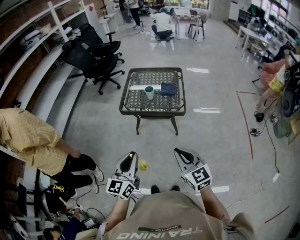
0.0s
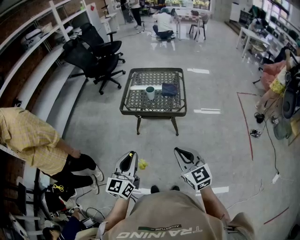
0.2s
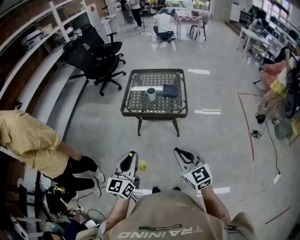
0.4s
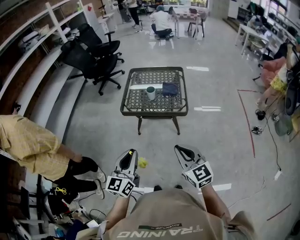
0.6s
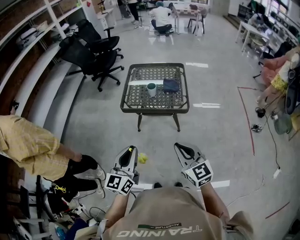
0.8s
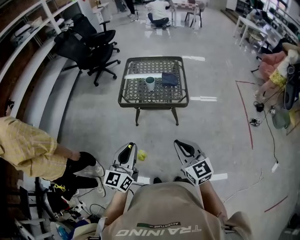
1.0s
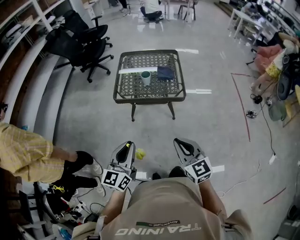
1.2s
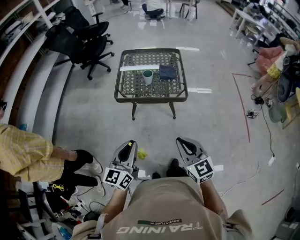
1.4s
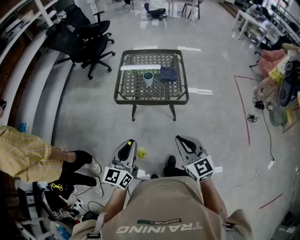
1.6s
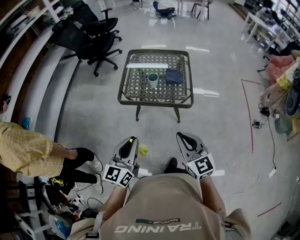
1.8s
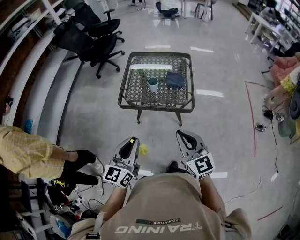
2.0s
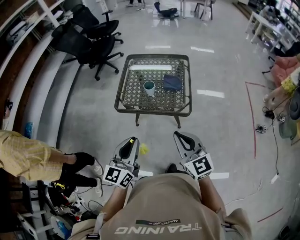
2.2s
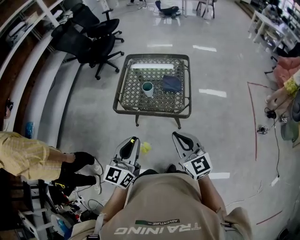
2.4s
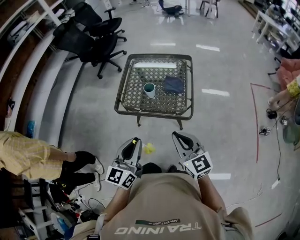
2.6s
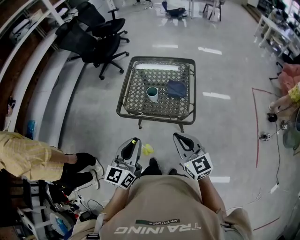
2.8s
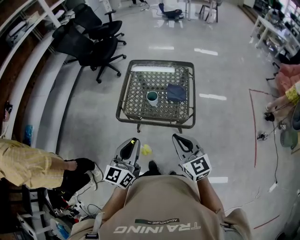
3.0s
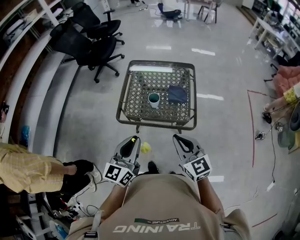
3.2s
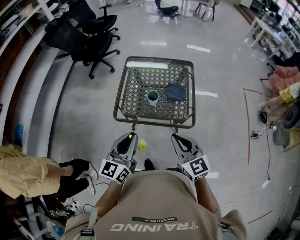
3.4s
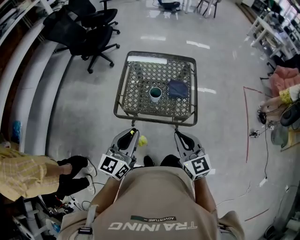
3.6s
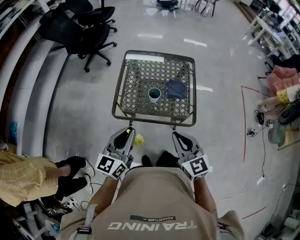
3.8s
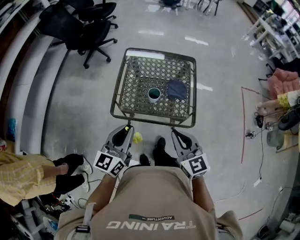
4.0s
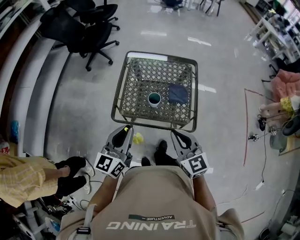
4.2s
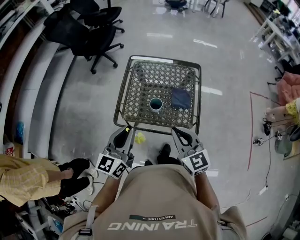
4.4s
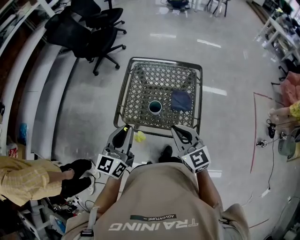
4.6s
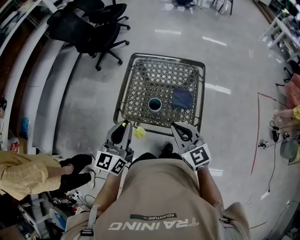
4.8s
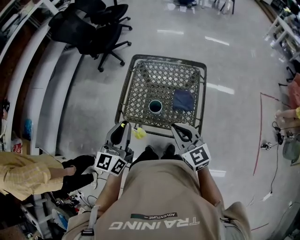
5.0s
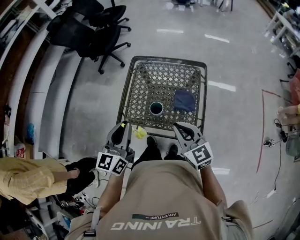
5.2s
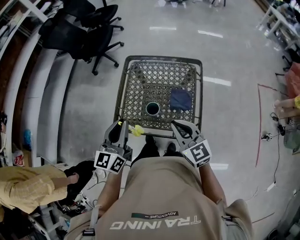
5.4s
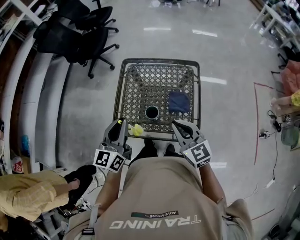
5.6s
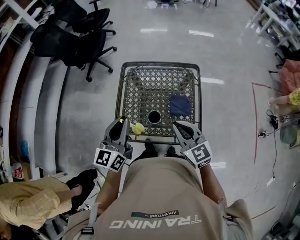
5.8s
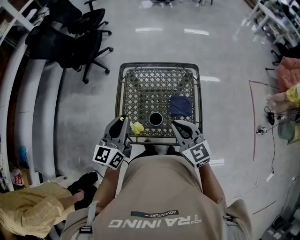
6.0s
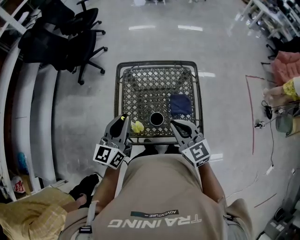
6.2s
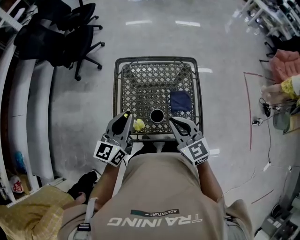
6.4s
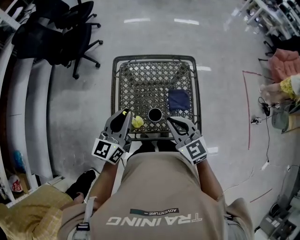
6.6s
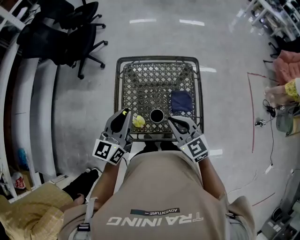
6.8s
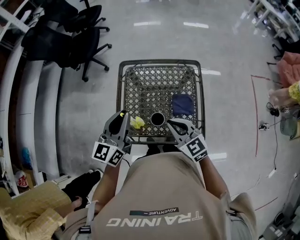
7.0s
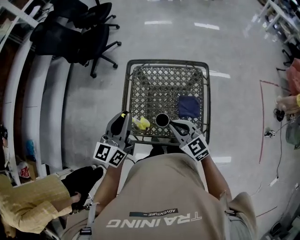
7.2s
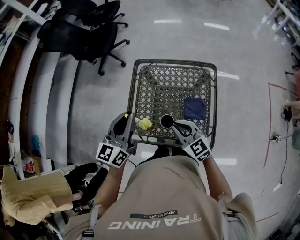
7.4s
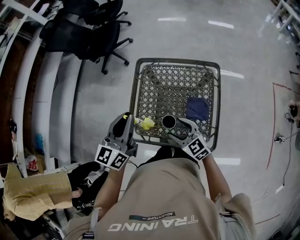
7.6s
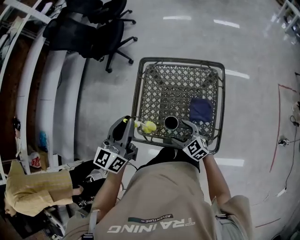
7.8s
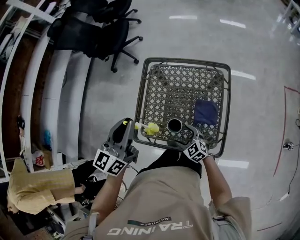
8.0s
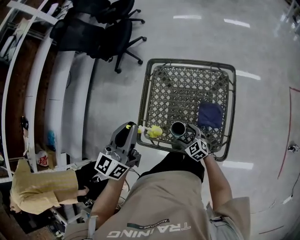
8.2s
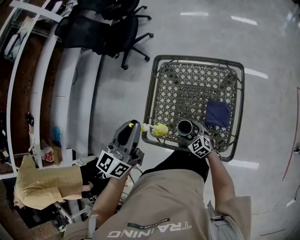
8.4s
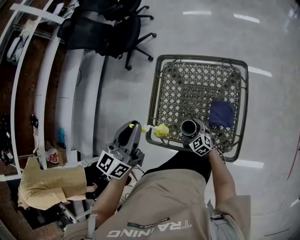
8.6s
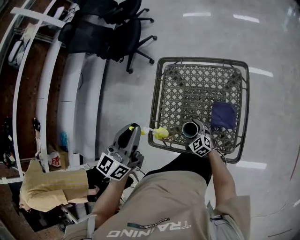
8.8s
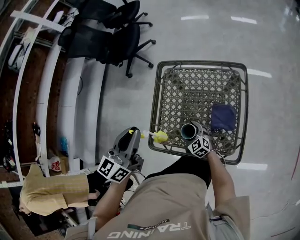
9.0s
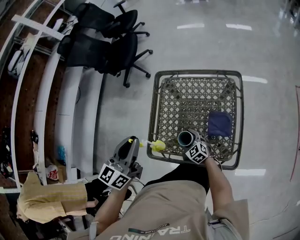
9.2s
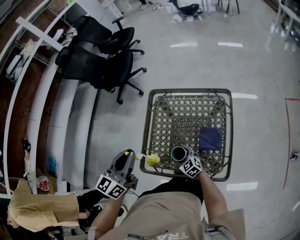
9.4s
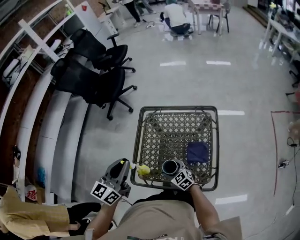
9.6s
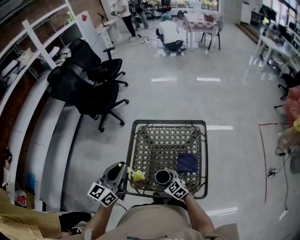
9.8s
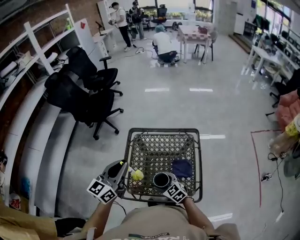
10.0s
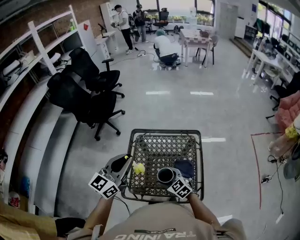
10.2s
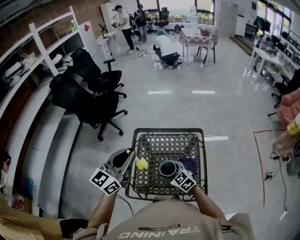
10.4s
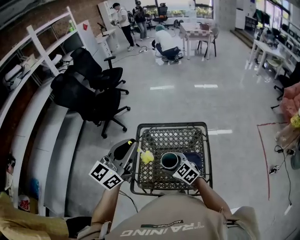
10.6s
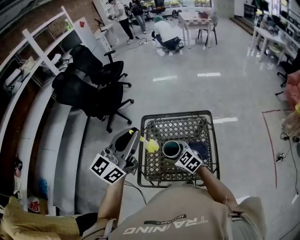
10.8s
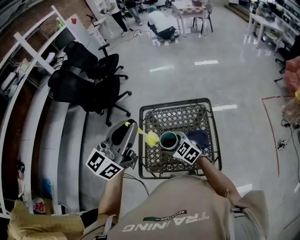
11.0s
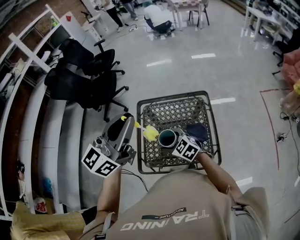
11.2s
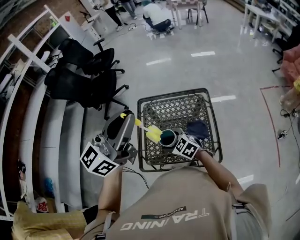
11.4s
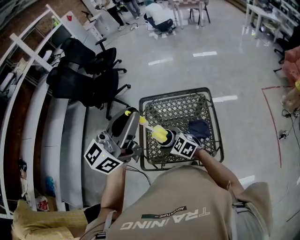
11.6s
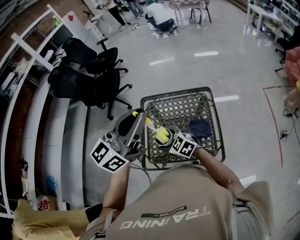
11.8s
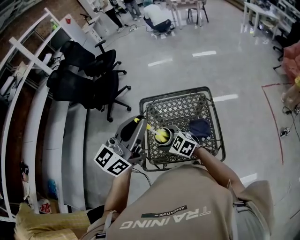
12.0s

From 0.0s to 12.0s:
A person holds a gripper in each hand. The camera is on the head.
From 0.0s to 1.6s: Both grippers move forward, about 10 cm.
From 1.6s to 3.0s: The right gripper moves forward, approximately 20 cm. The left gripper moves forward and to the right, some 20 cm.
From 3.0s to 4.4s: Both grippers travel together forward, some 15 cm.
From 4.4s to 6.0s: Both grippers move forward, roughly 15 cm.
From 6.0s to 7.6s: The right gripper shifts roughly 15 cm downward, turns by some 20 degrees, and opens its fingers.
From 7.6s to 9.0s: The right gripper goes some 20 cm downward.
From 9.0s to 10.4s: The right gripper heads upward, covering about 25 cm, while the left gripper goes about 15 cm upward, and changes its angle by some 20 degrees.
From 10.4s to 12.0s: The right gripper goes about 5 cm to the left; the left gripper is displaced upward by some 5 cm.

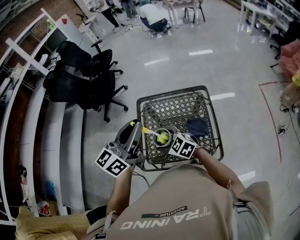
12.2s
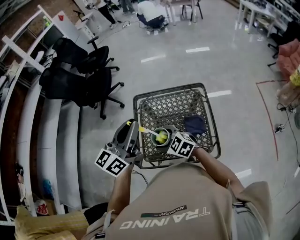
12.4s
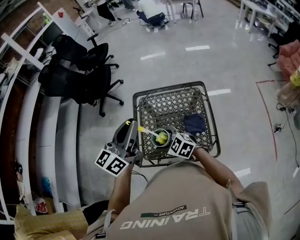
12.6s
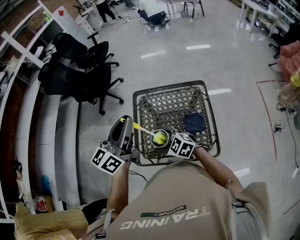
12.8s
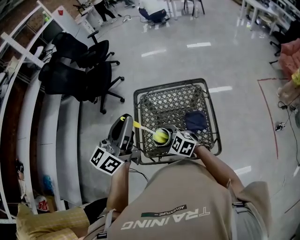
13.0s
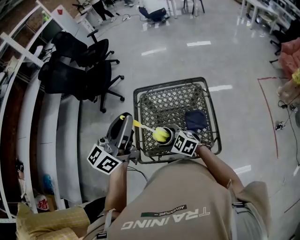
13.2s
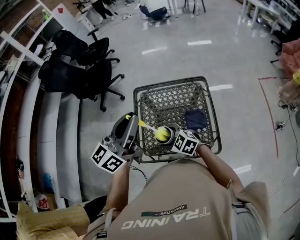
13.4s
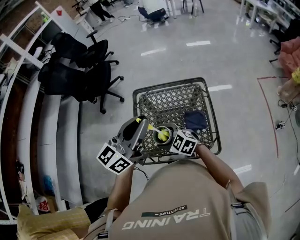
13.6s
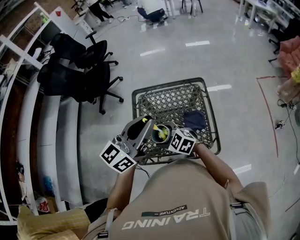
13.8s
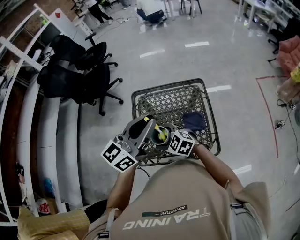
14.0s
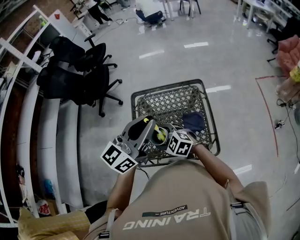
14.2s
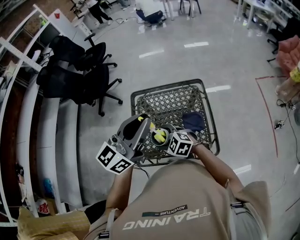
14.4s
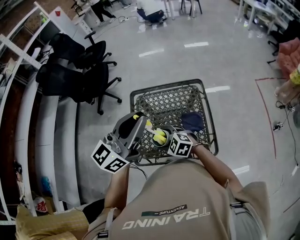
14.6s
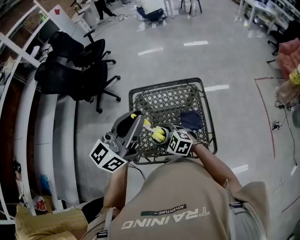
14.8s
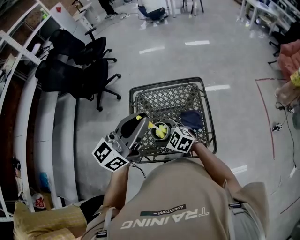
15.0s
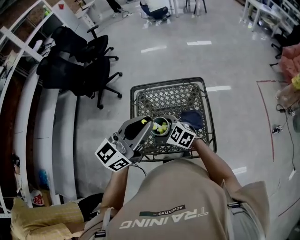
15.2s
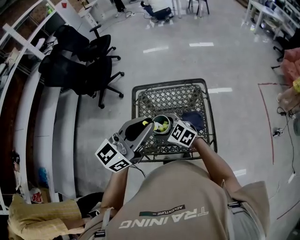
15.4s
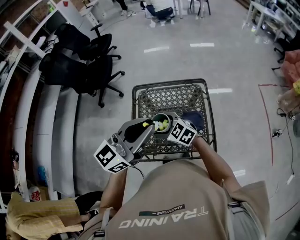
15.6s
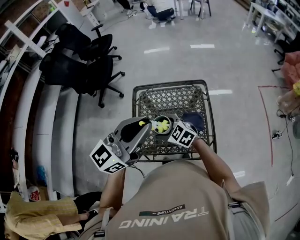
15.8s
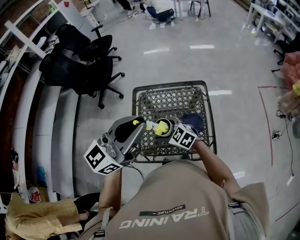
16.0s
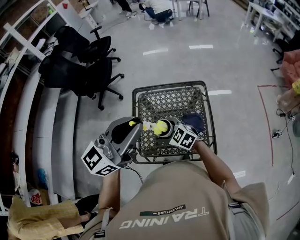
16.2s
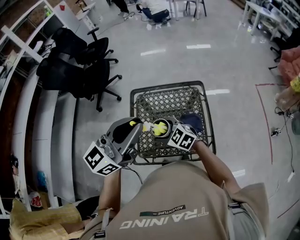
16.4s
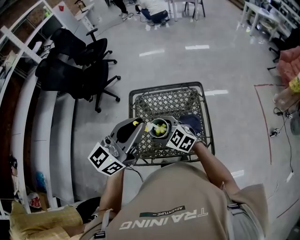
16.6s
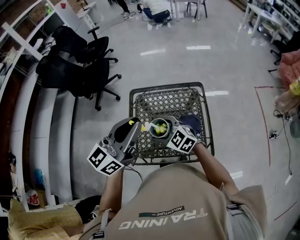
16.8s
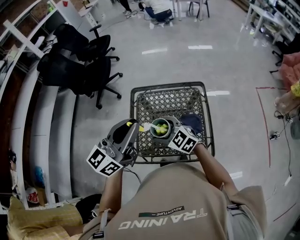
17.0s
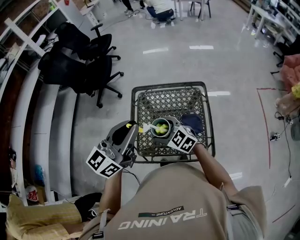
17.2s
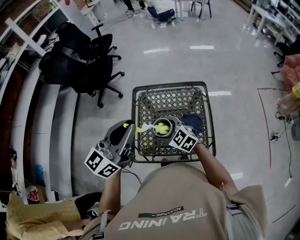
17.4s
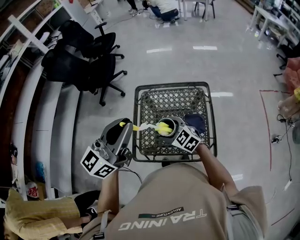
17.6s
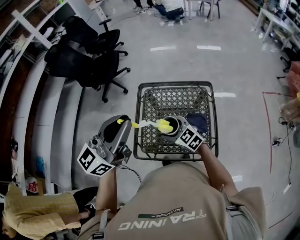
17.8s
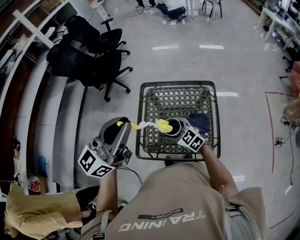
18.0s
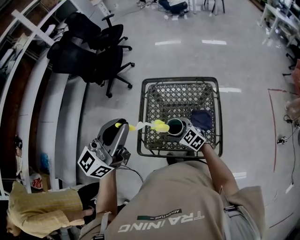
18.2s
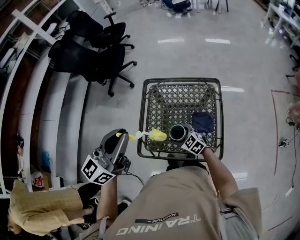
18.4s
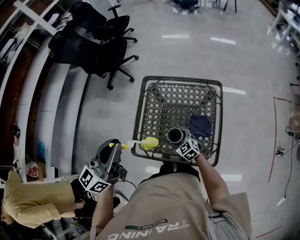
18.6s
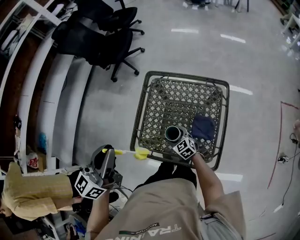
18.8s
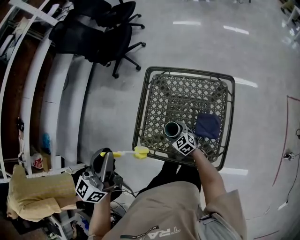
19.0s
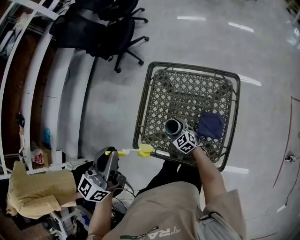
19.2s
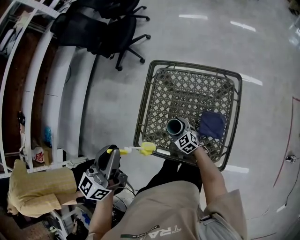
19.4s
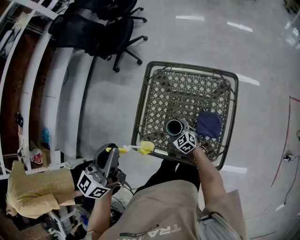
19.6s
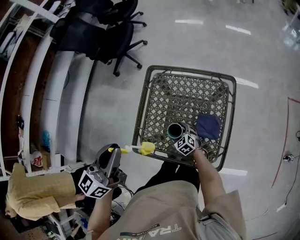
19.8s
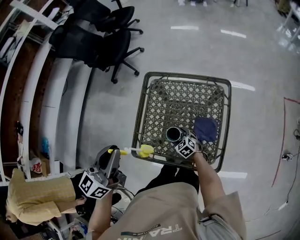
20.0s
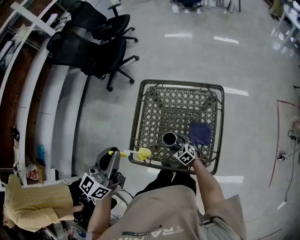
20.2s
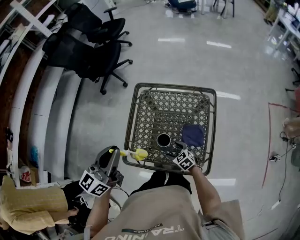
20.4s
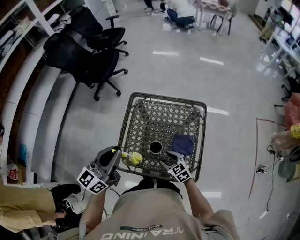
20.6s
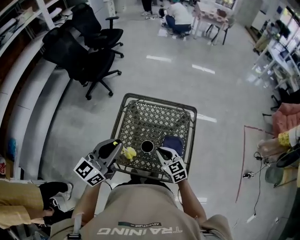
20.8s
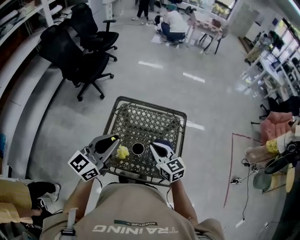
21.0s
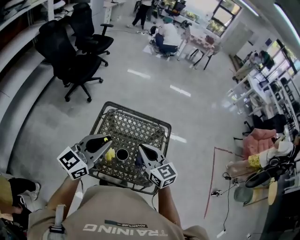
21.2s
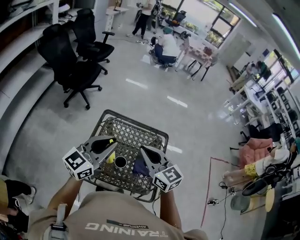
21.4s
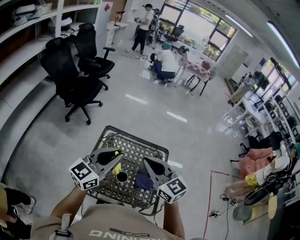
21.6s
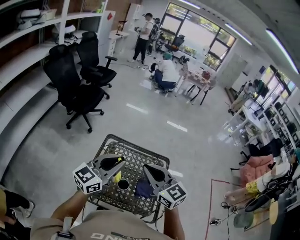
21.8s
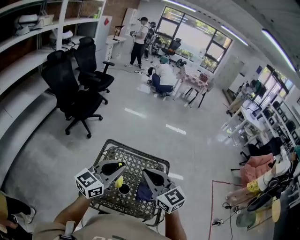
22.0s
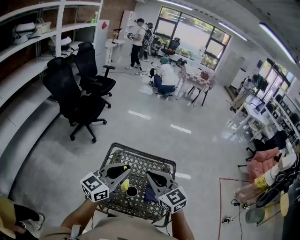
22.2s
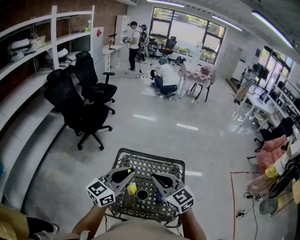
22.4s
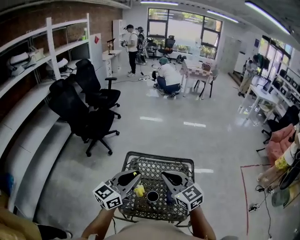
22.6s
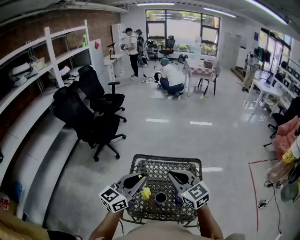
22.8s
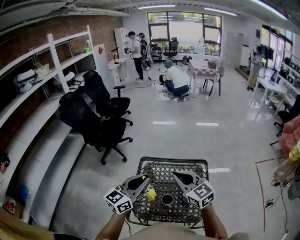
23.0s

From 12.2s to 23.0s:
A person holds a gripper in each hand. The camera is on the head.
From 12.2s to 13.8s: The left gripper is displaced to the right by approximately 5 cm.
From 13.8s to 15.2s: The grippers stay close to where they were, moving slightly.
From 16.8s to 18.4s: The left gripper travels to the left by approximately 10 cm; the right gripper is displaced downward by some 15 cm.
From 18.4s to 20.0s: The right gripper travels downward by some 15 cm. Meanwhile the left gripper shifts roughly 10 cm downward.
From 20.0s to 21.4s: The right gripper shifts roughly 50 cm upward, tips its fingers upward by about 40 degrees, and closes. Meanwhile the left gripper is displaced to the right by approximately 10 cm, and changes its angle by approximately 20 degrees.
From 21.4s to 23.0s: The left gripper changes place by some 5 cm.

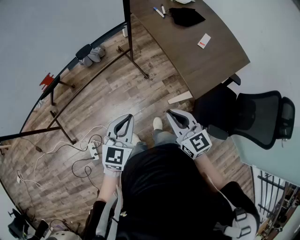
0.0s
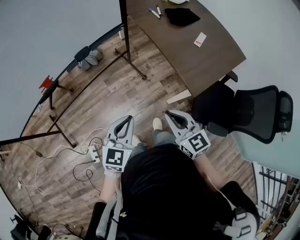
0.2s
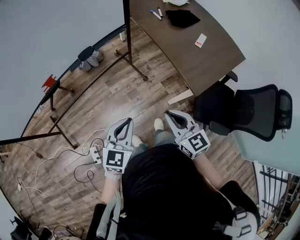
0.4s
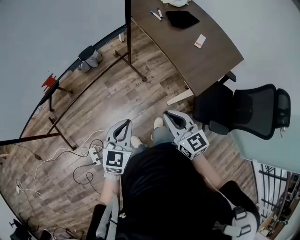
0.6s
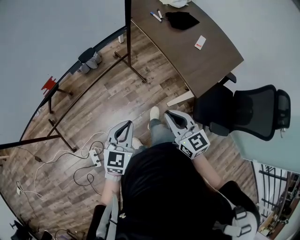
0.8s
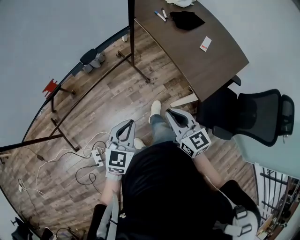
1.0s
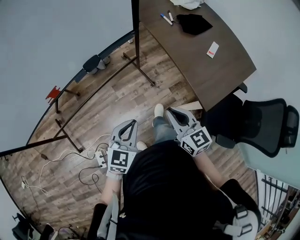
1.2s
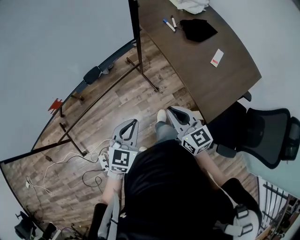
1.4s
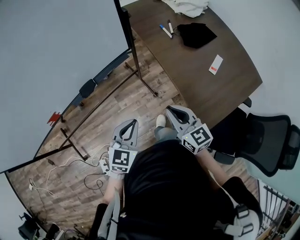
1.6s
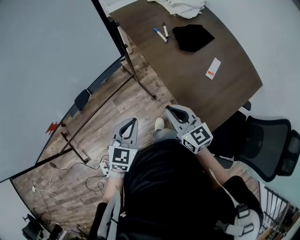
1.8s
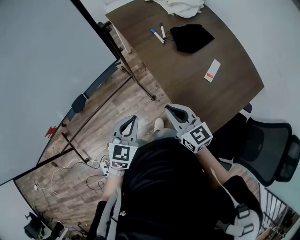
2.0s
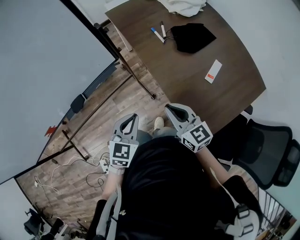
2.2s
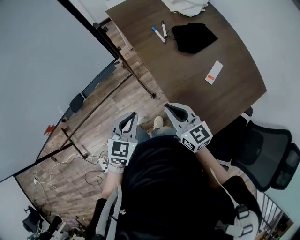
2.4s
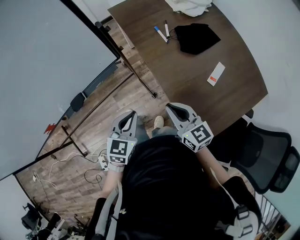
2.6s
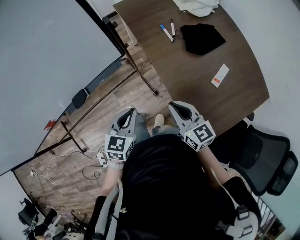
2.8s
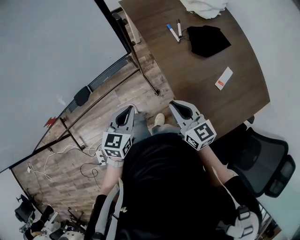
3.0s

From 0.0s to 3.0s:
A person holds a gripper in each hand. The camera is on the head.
From 0.0s to 1.6s: Both grippers travel together forward, some 20 cm.
From 1.6s to 3.0s: The right gripper moves forward and to the right, about 15 cm. The left gripper travels forward by some 15 cm.
